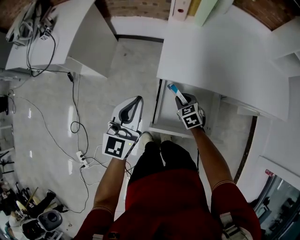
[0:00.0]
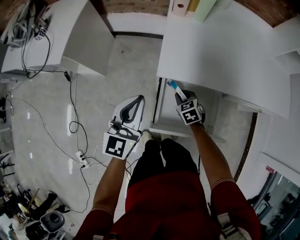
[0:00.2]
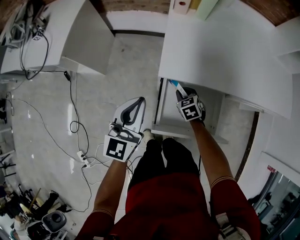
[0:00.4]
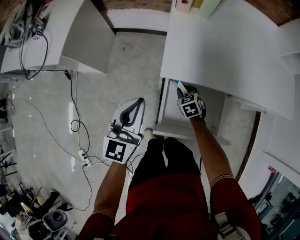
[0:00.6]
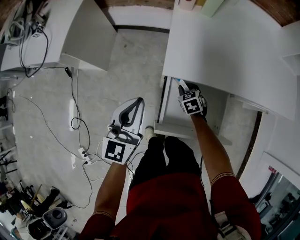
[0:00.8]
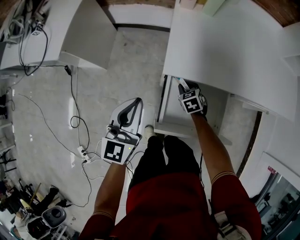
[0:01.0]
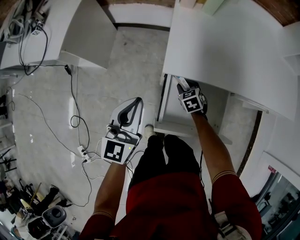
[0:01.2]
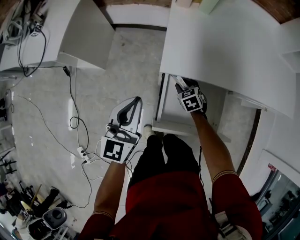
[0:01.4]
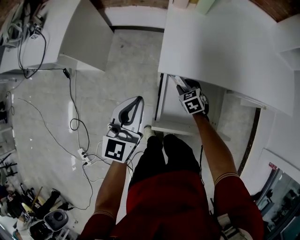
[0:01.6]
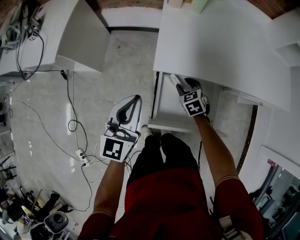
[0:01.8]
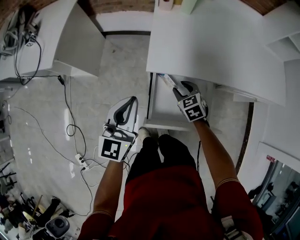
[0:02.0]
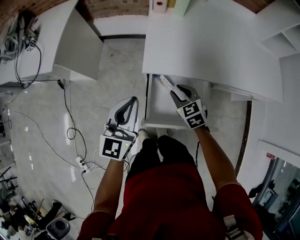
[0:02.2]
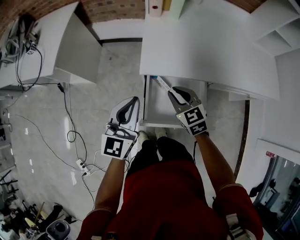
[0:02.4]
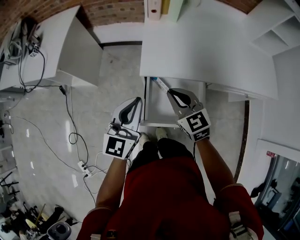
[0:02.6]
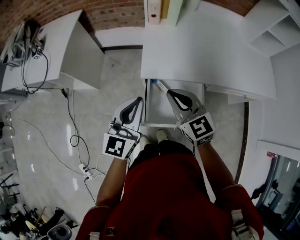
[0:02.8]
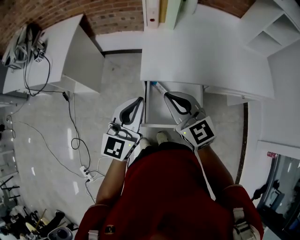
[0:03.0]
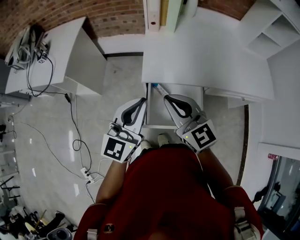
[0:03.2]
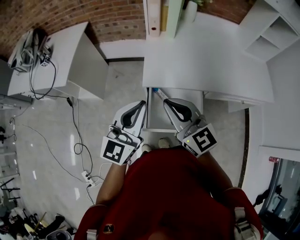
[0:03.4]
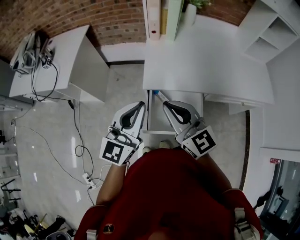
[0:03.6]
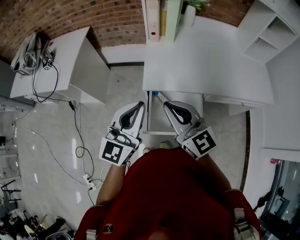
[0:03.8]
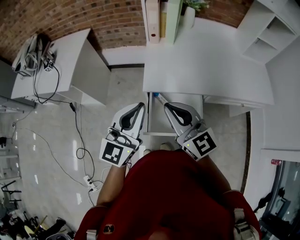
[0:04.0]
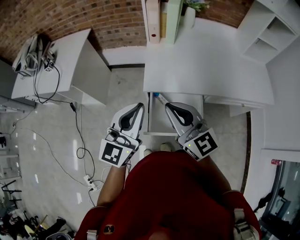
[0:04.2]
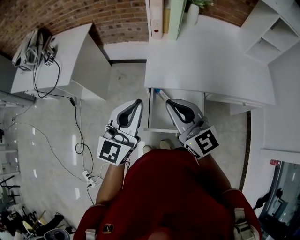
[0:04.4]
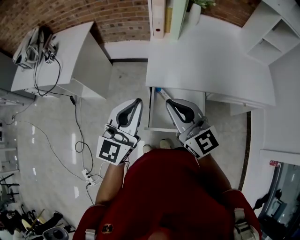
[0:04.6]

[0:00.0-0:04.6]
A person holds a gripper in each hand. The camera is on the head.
0:00.0 to 0:01.6: The right gripper changes place by approximately 5 cm, and opens.
0:01.6 to 0:03.0: The right gripper goes about 35 cm upward, tilts its fingers roughly 40 degrees upward, and closes; the left gripper goes some 15 cm upward and to the right.
0:03.0 to 0:04.6: Both grippers travel together upward, some 5 cm.

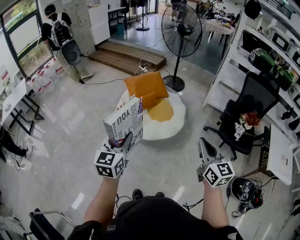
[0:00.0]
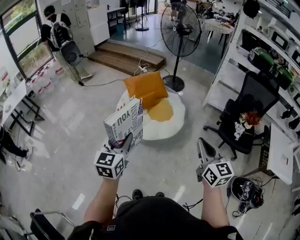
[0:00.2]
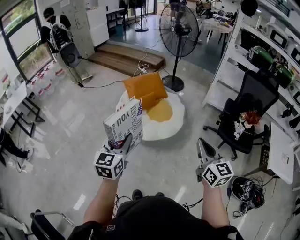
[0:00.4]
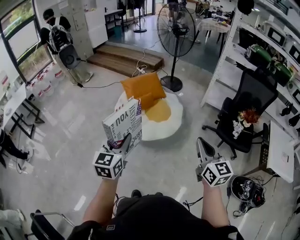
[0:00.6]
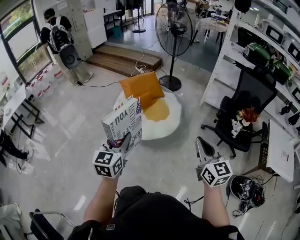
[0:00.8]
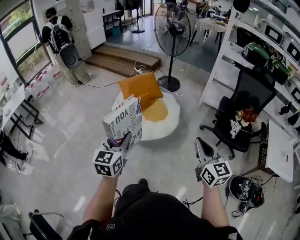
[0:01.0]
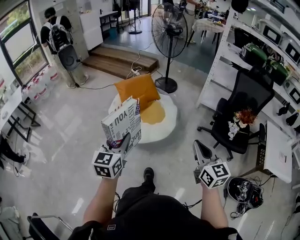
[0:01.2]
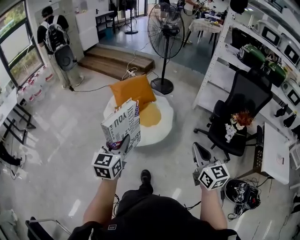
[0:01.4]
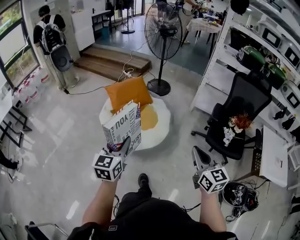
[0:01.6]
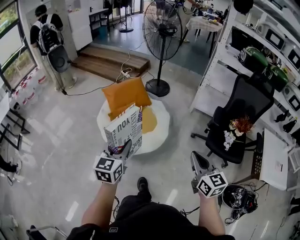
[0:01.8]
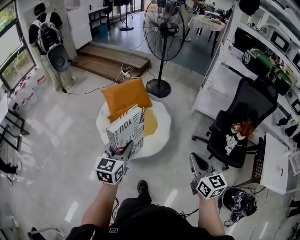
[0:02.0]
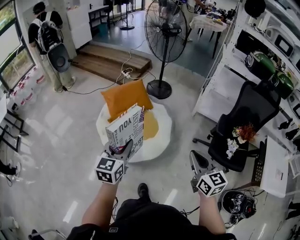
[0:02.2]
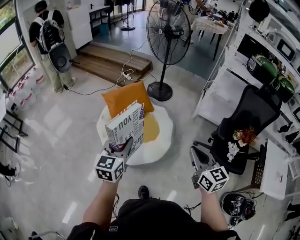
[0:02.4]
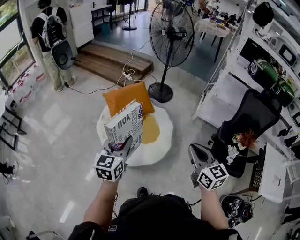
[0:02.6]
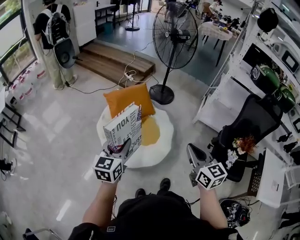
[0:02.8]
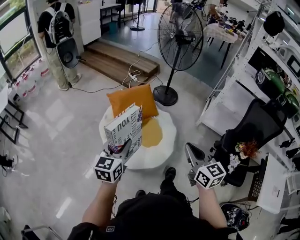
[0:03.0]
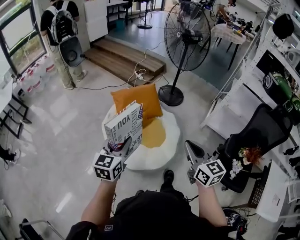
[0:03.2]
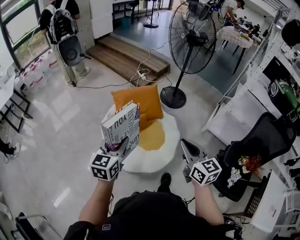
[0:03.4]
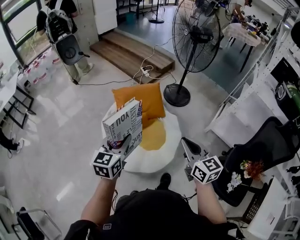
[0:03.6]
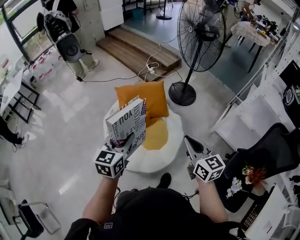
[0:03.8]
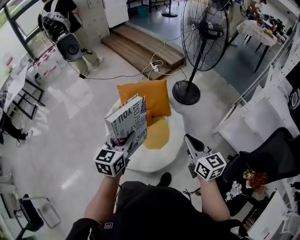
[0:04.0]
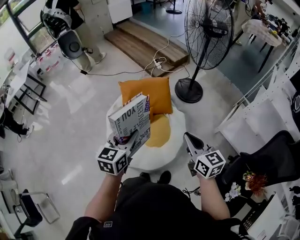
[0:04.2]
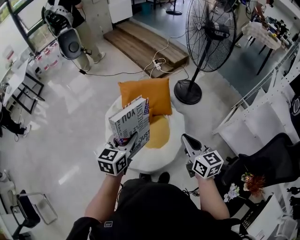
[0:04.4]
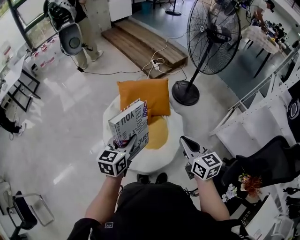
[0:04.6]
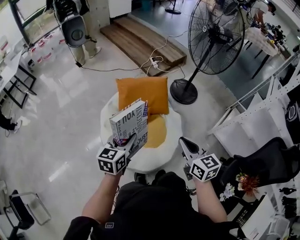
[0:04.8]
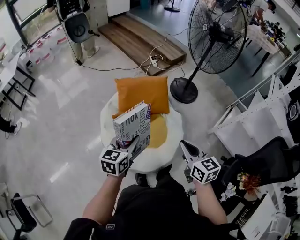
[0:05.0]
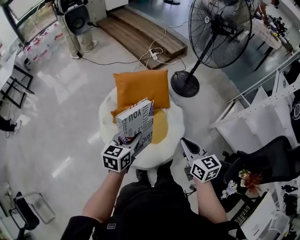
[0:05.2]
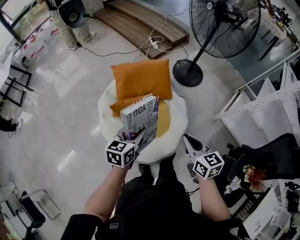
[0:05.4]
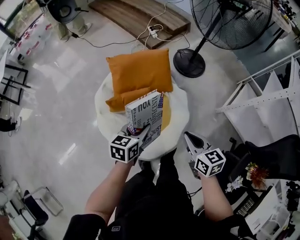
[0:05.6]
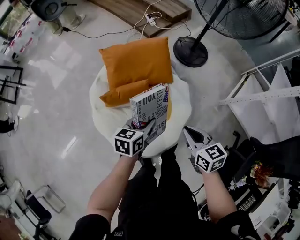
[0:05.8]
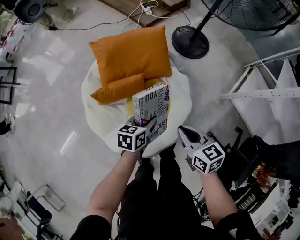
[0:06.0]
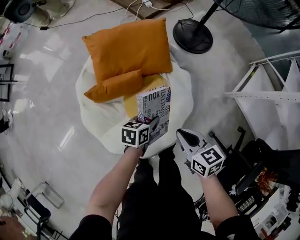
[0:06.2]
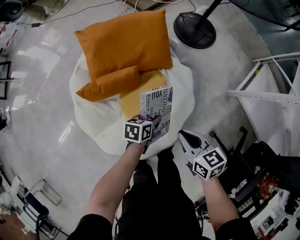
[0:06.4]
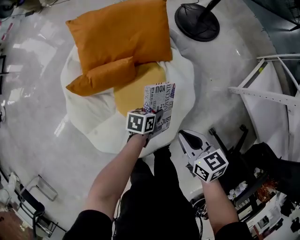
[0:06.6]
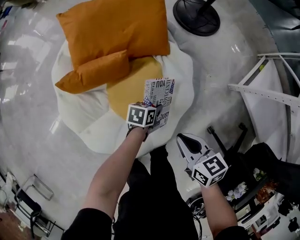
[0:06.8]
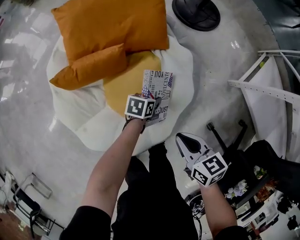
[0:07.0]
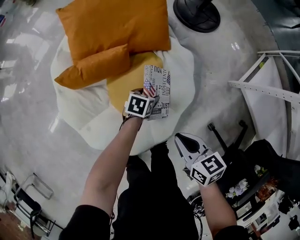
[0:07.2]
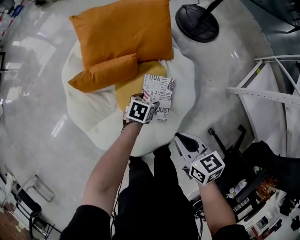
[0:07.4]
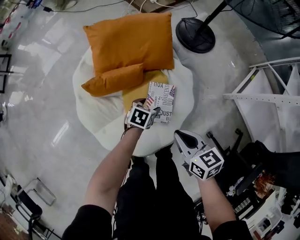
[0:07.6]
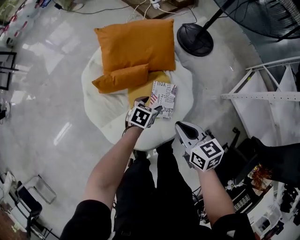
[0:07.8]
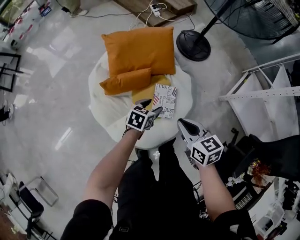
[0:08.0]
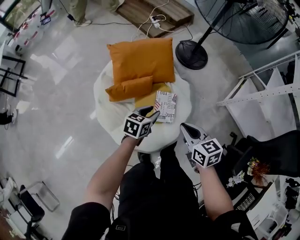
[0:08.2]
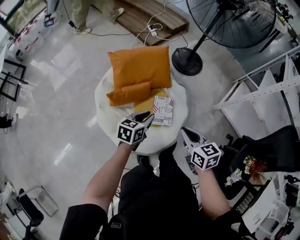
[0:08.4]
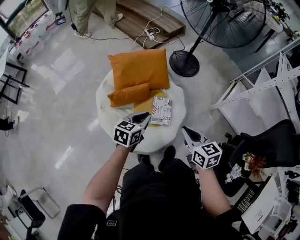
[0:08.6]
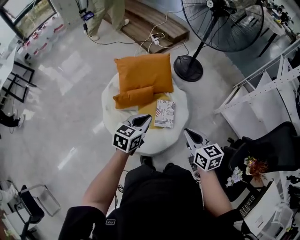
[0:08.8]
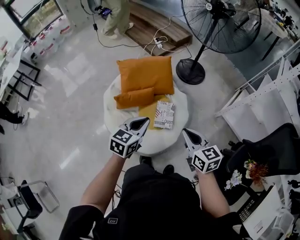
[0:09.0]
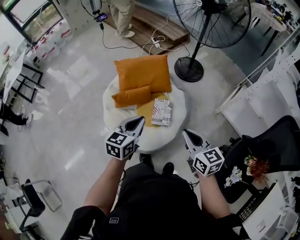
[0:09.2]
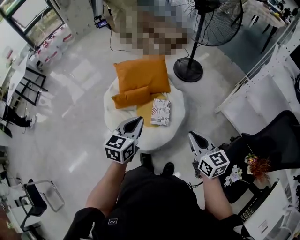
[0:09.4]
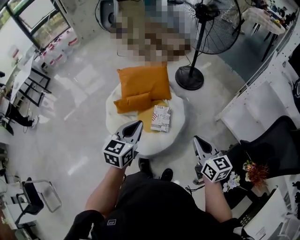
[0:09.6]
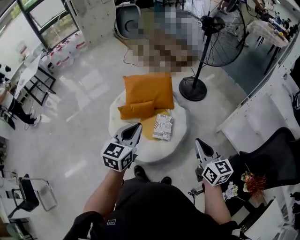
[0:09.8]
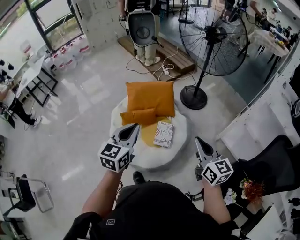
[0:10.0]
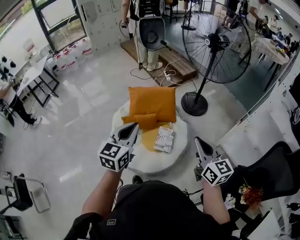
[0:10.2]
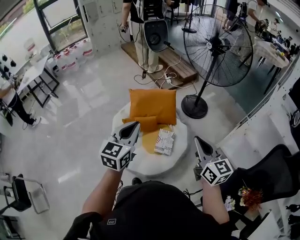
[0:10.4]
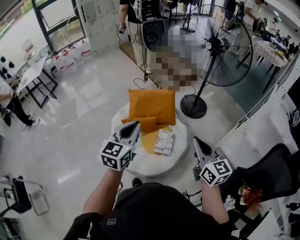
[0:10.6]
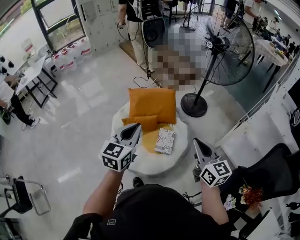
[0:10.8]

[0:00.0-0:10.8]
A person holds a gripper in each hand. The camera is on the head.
0:00.0 to 0:01.6: The grippers both shift to the right and forward by approximately 15 cm.
0:01.6 to 0:03.0: Both grippers move forward, approximately 25 cm.
0:03.0 to 0:04.6: The two grippers go approximately 20 cm forward and to the right. The right gripper swivels about 20 degrees.
0:04.6 to 0:06.2: Both grippers move downward, about 40 cm. The left gripper turns by approximately 40 degrees. The right gripper changes its angle by about 20 degrees.
0:06.2 to 0:07.8: The left gripper reaches approximately 25 cm downward, then returns, changes its angle by approximately 20 degrees, and opens its fingers. Meanwhile the right gripper moves about 15 cm downward and comes back.
0:07.8 to 0:09.2: The left gripper goes about 40 cm upward and backward, turns by about 30 degrees, and closes. The right gripper goes approximately 30 cm upward and backward.
0:09.2 to 0:10.8: The grippers both shift upward by some 15 cm.

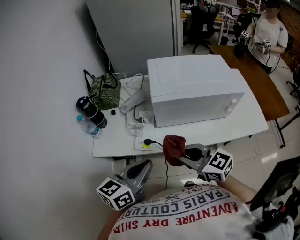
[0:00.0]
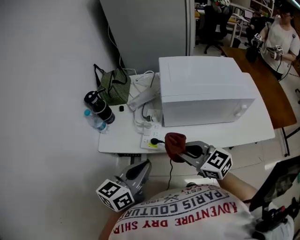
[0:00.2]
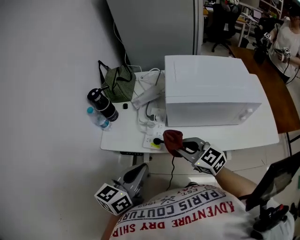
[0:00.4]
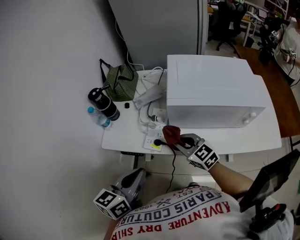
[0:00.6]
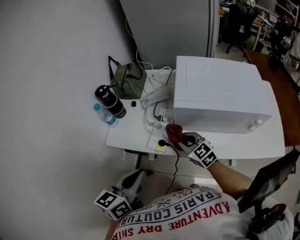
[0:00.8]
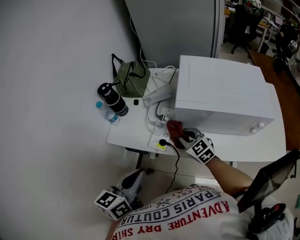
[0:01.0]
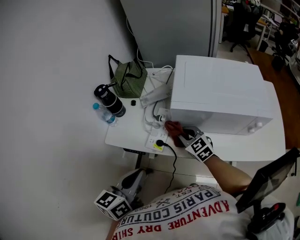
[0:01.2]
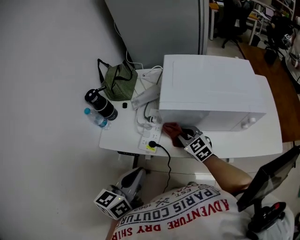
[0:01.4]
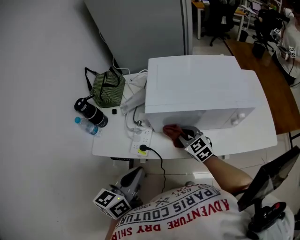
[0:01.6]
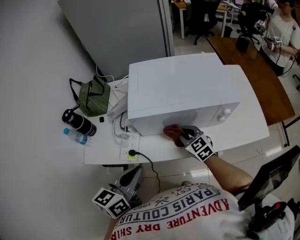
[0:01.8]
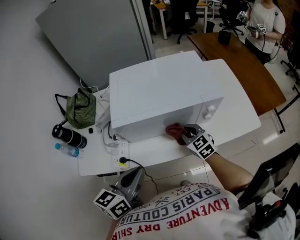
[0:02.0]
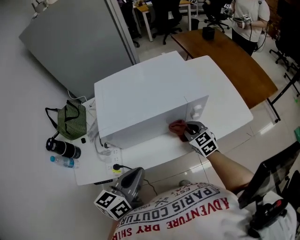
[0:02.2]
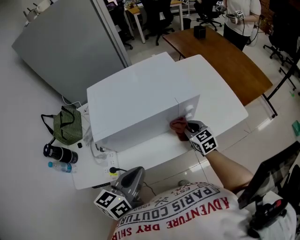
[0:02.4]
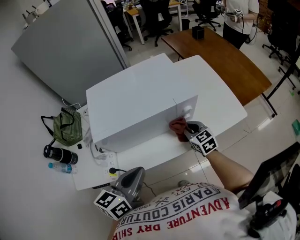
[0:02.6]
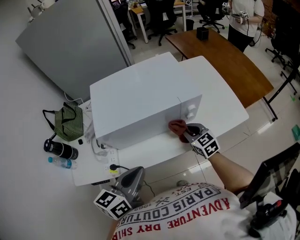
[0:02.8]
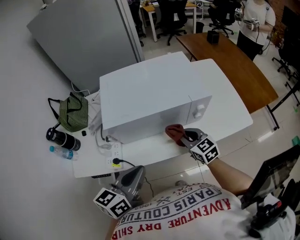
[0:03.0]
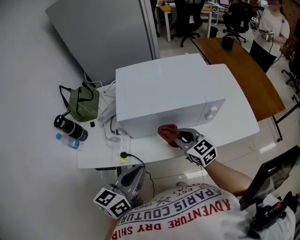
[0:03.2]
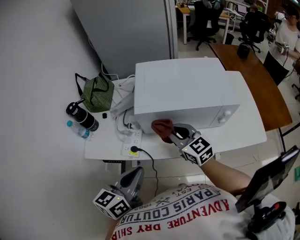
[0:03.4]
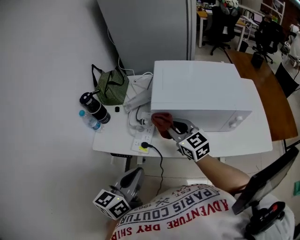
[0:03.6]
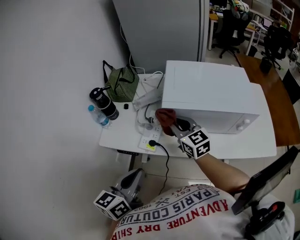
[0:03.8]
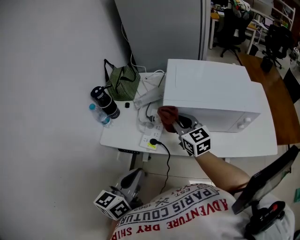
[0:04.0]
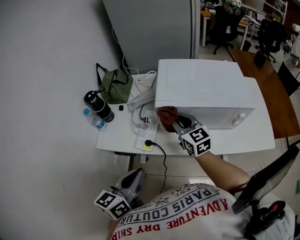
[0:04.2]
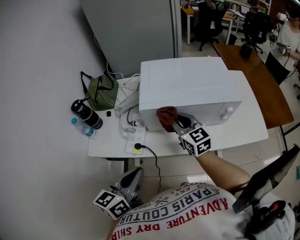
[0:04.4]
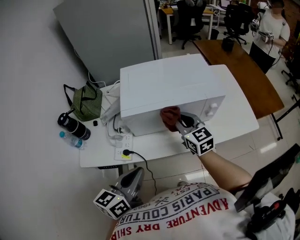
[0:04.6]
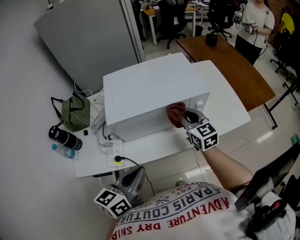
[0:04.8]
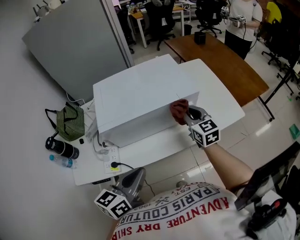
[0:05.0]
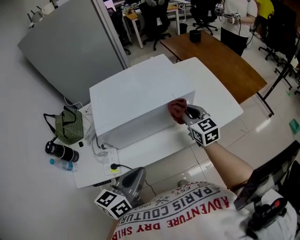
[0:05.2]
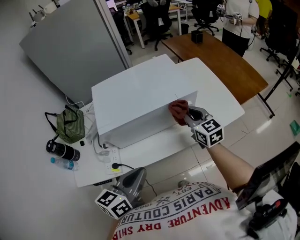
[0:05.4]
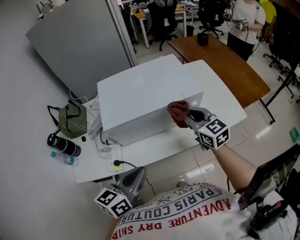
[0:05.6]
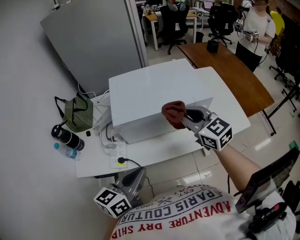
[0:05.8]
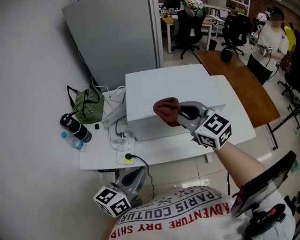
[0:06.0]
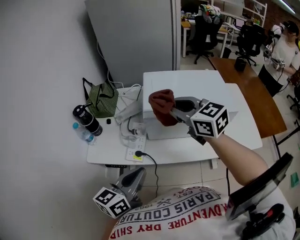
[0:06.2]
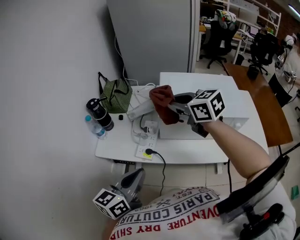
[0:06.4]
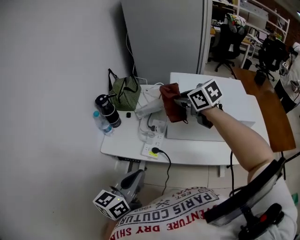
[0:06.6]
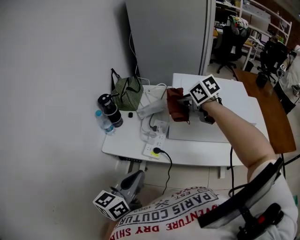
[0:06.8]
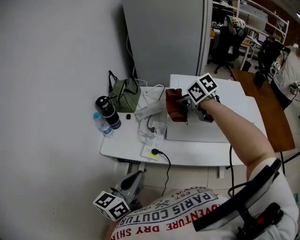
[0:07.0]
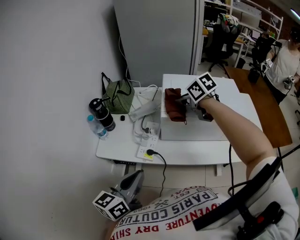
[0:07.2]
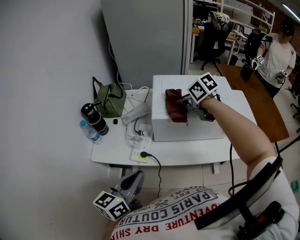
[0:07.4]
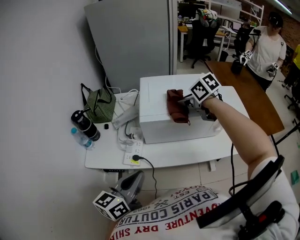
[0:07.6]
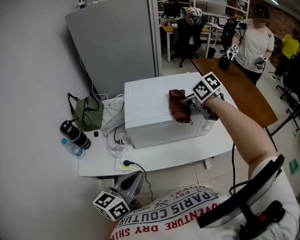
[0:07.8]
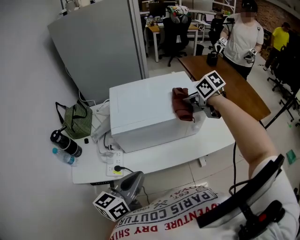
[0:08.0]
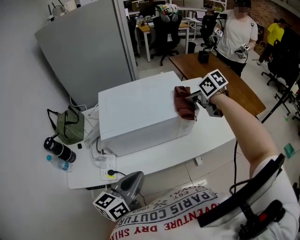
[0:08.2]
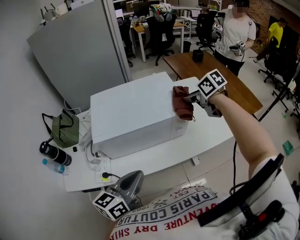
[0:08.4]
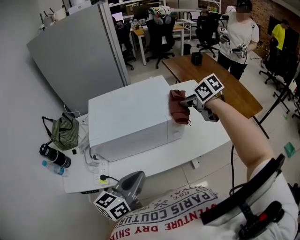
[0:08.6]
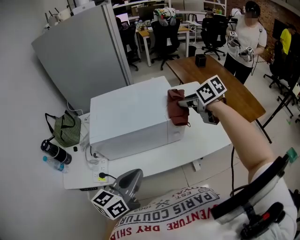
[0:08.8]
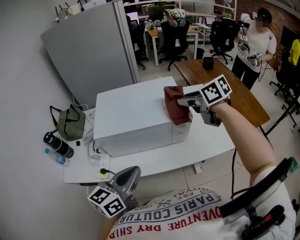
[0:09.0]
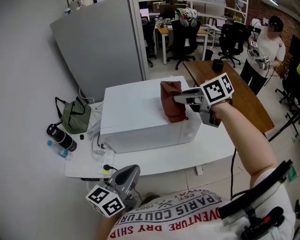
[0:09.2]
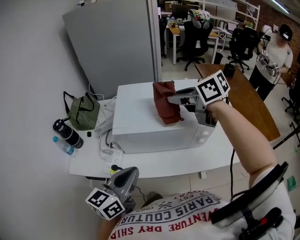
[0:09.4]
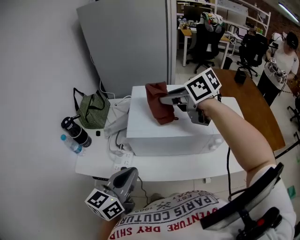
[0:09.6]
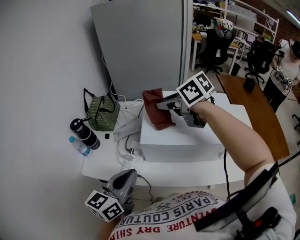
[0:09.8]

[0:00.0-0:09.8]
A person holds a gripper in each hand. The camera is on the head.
0:00.0 to 0:01.4: The left gripper changes its angle by some 20 degrees. The right gripper is displaced forward and downward by some 20 cm, and changes its angle by about 20 degrees.
0:01.4 to 0:02.8: The left gripper ends up roughly 20 cm from where it was, and rotates about 30 degrees. The right gripper ends up about 30 cm from where it was, and turns by about 30 degrees.
0:02.8 to 0:04.2: The right gripper shifts by about 30 cm, and rotates approximately 20 degrees; the left gripper changes place by approximately 20 cm, and changes its angle by about 30 degrees.
0:04.2 to 0:05.6: The right gripper ends up some 25 cm from where it was; the left gripper moves roughly 15 cm, and turns by roughly 30 degrees.
0:05.6 to 0:07.0: The right gripper moves roughly 10 cm upward and comes back, and changes its angle by some 50 degrees, while the left gripper moves about 20 cm, and rotates about 30 degrees.
0:07.0 to 0:08.4: The left gripper shifts about 25 cm to the right, and swivels some 30 degrees. The right gripper is displaced to the right by some 40 cm, and swivels some 30 degrees.
0:08.4 to 0:09.8: The right gripper changes place by approximately 40 cm, and turns by approximately 40 degrees. The left gripper shifts by some 20 cm, and rotates about 20 degrees.
